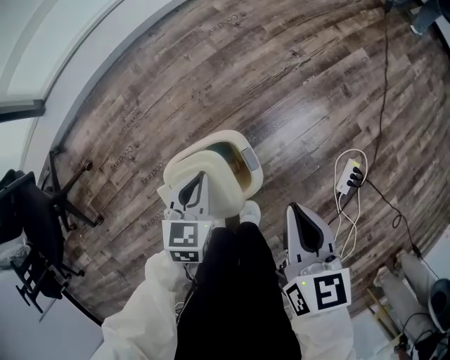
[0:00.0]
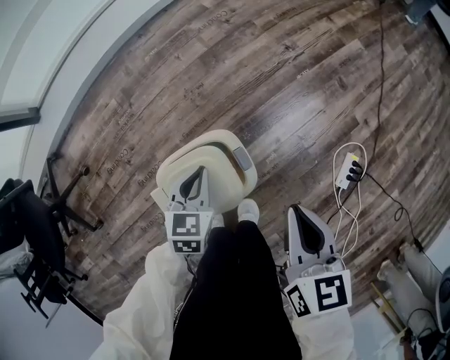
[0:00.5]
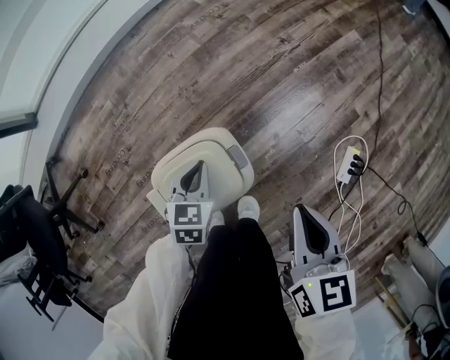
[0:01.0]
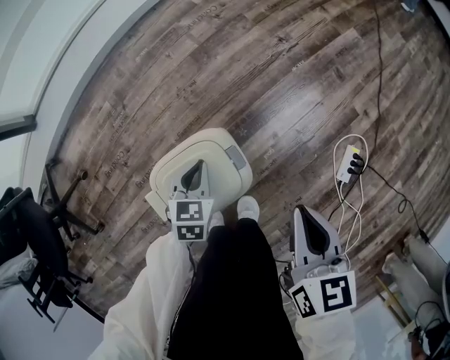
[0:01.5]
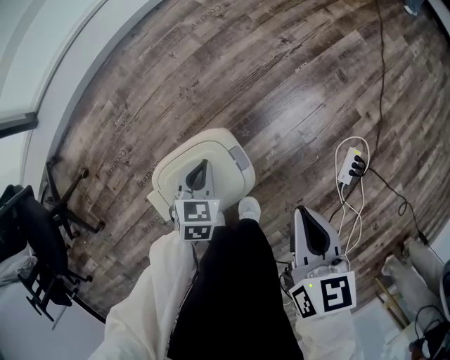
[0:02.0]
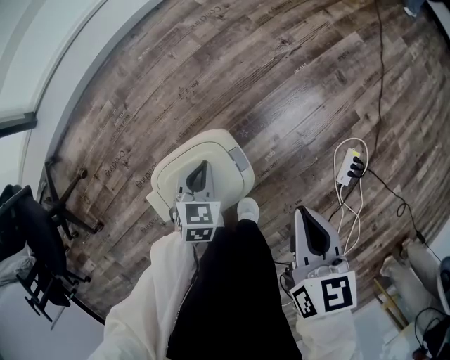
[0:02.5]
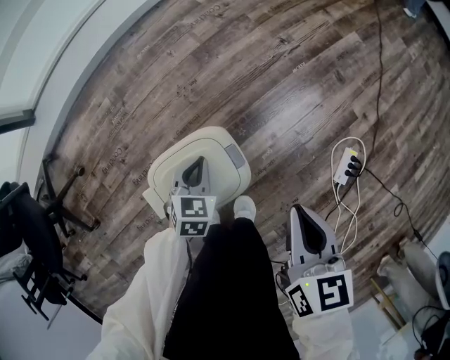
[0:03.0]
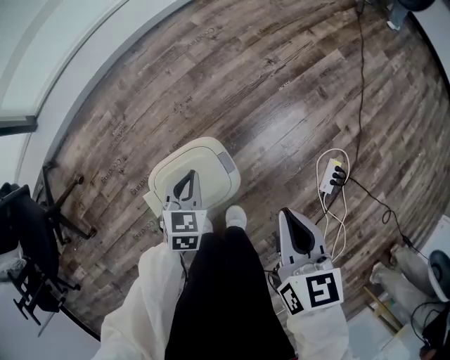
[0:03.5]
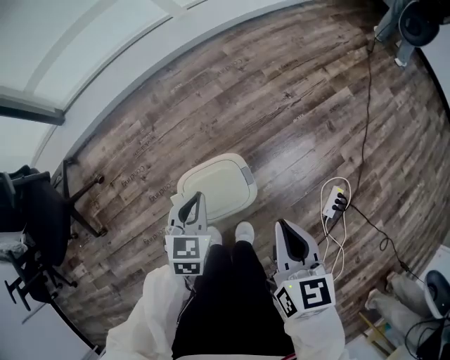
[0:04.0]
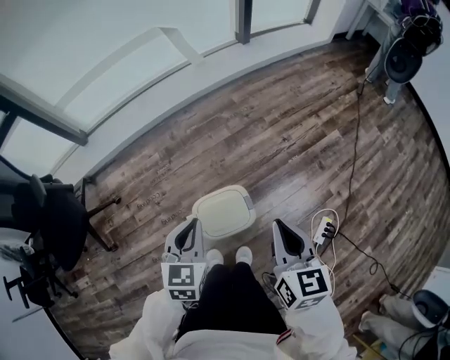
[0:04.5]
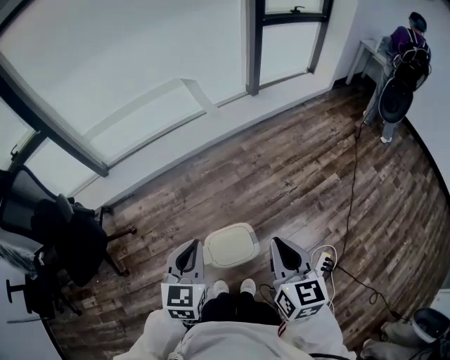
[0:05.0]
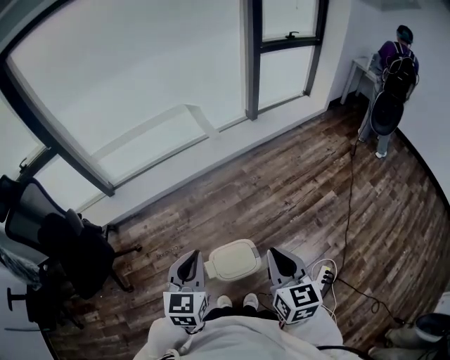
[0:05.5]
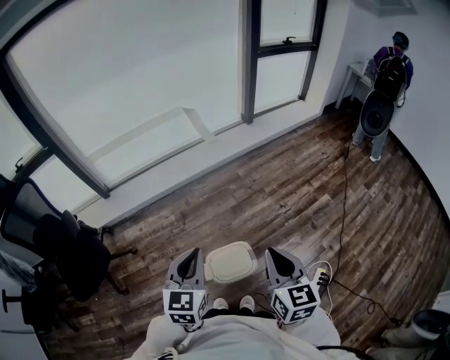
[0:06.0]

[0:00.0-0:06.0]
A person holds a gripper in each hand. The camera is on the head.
0:00.0 to 0:02.0: The right gripper moves about 5 cm. The left gripper heads downward, covering roughly 10 cm.
0:02.0 to 0:04.0: The right gripper heads upward and to the left, covering about 15 cm; the left gripper moves upward, some 20 cm.
0:04.0 to 0:06.0: The two grippers go approximately 40 cm upward. The left gripper rotates roughly 20 degrees.

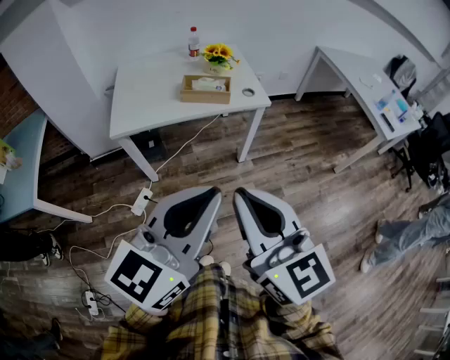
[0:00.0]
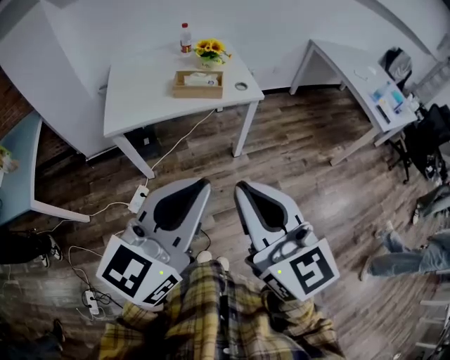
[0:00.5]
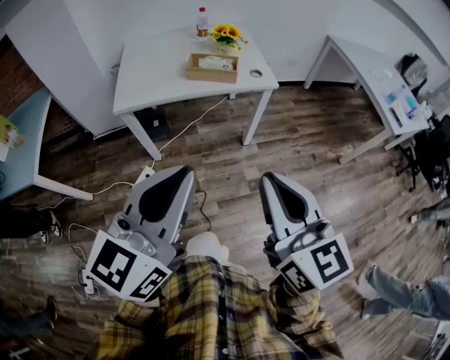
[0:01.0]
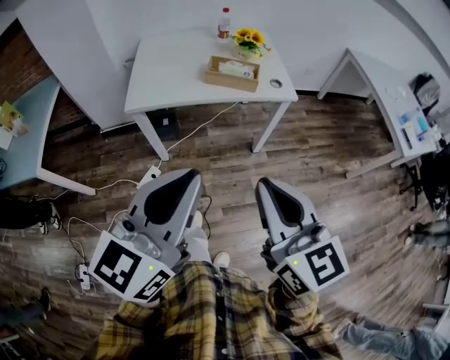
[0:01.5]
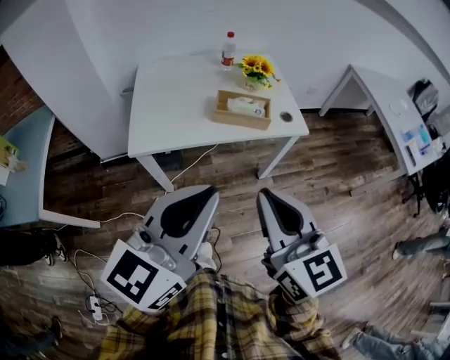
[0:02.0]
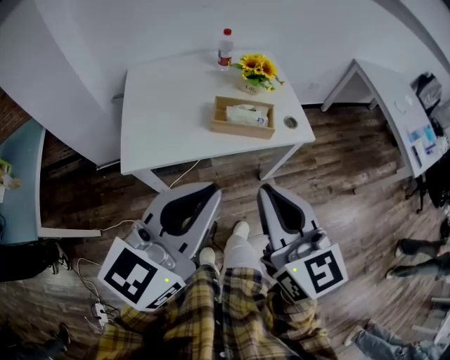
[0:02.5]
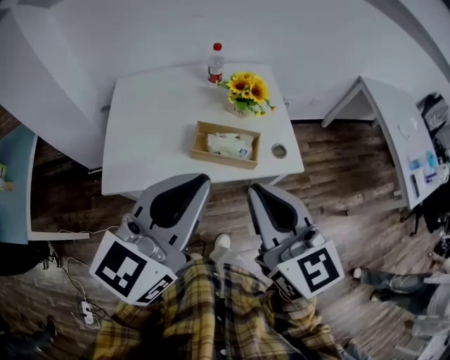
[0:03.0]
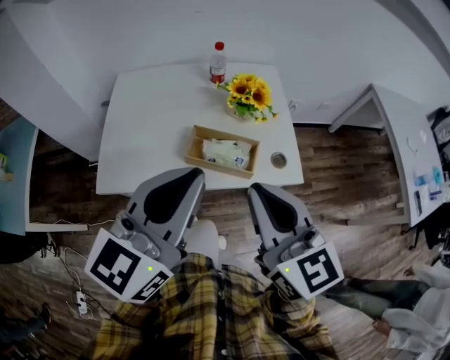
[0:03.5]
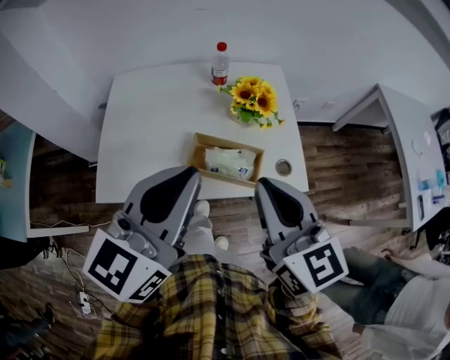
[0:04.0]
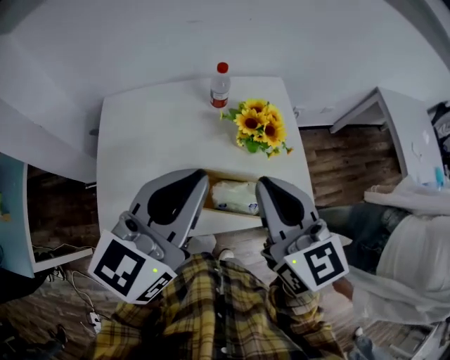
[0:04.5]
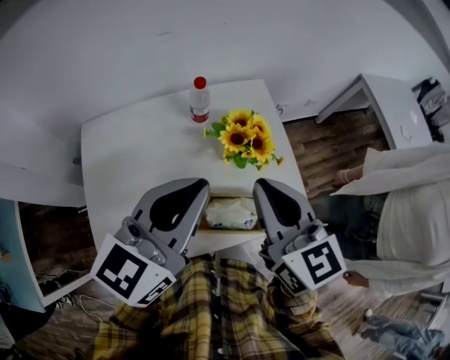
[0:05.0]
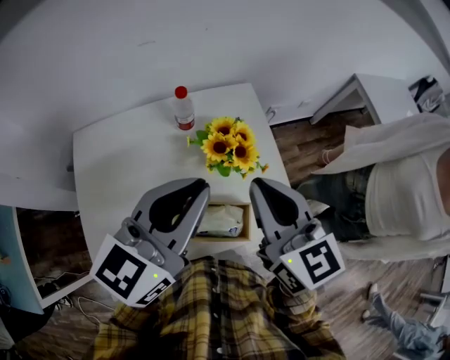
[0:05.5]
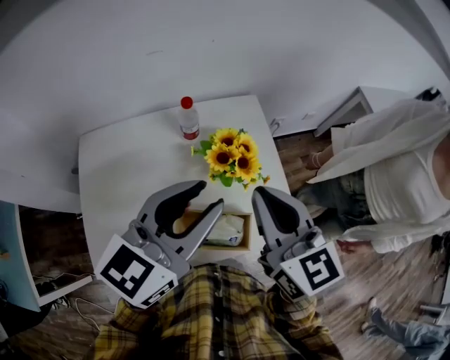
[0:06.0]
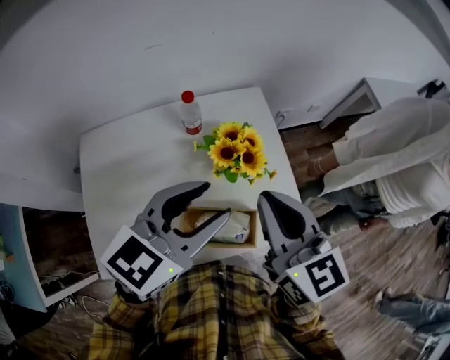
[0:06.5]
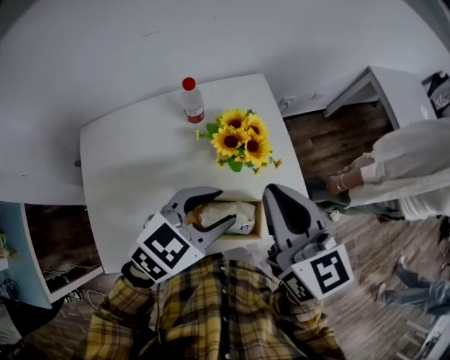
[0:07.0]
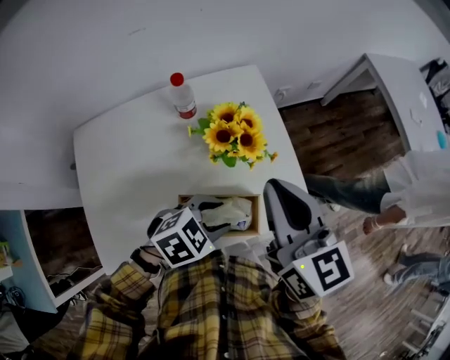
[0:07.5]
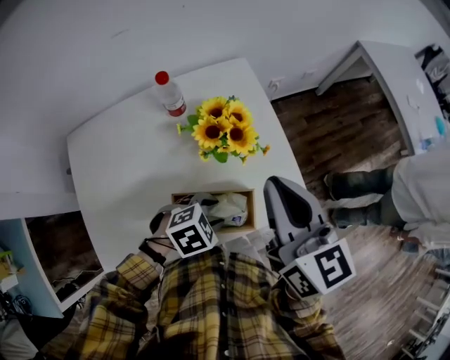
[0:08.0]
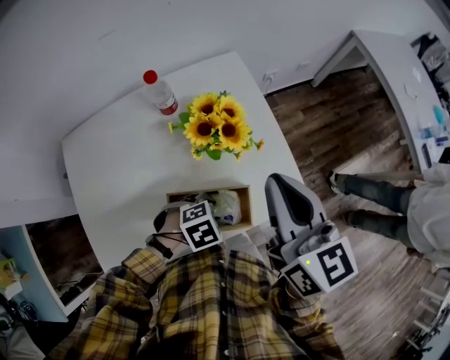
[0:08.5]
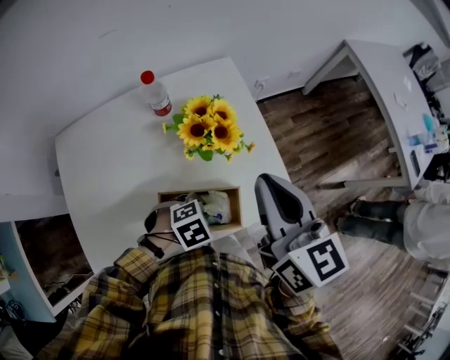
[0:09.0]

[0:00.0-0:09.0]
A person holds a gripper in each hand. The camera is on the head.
0:00.0 to 0:02.0: The two grippers go approximately 20 cm forward and to the left.
0:02.0 to 0:04.5: The two grippers travel together, forward, roughly 40 cm.
0:04.5 to 0:07.0: The left gripper shifts approximately 15 cm downward and to the right, changes its angle by about 40 degrees, and opens. The right gripper shifts approximately 5 cm forward.
0:07.0 to 0:09.0: The right gripper moves roughly 5 cm. The left gripper heads downward, covering approximately 20 cm, angles its fingers downward, by some 40 degrees, and closes its fingers.

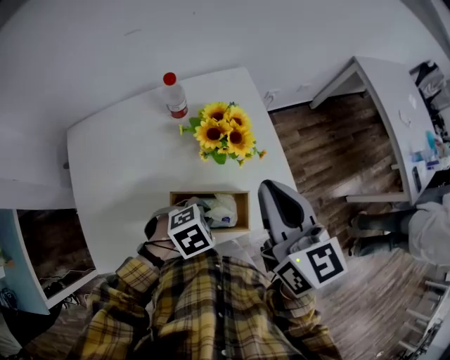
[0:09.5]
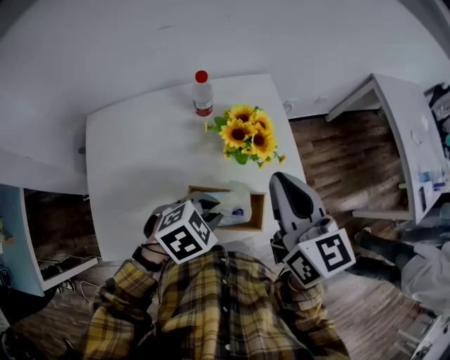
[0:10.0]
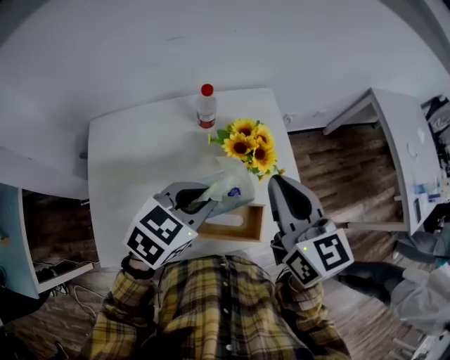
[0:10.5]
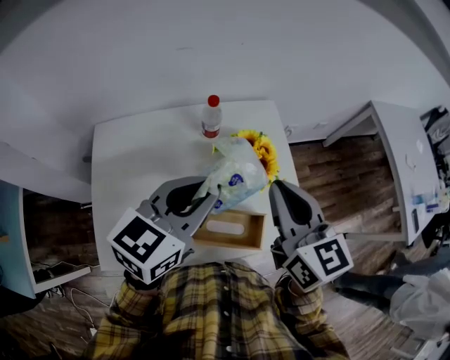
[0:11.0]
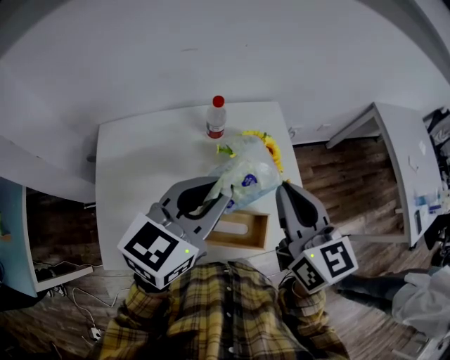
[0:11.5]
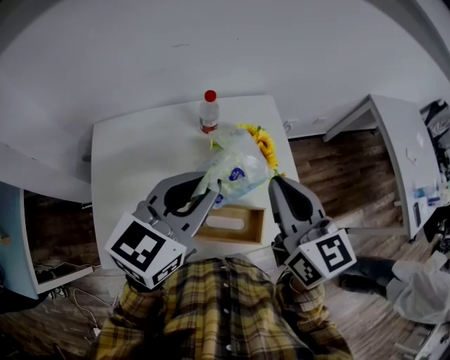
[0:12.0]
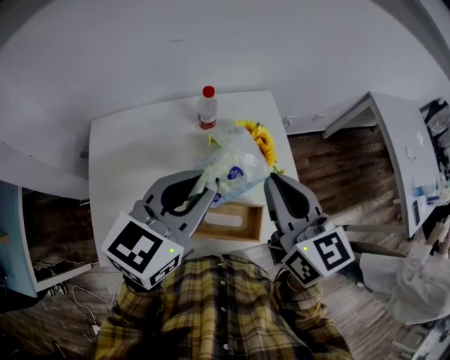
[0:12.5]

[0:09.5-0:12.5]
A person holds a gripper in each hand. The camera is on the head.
0:09.5 to 0:11.0: The left gripper moves upward, about 25 cm, and angles its fingers upward, by some 50 degrees, while the right gripper ends up some 5 cm from where it was.
0:11.0 to 0:12.5: There are only small adjustments of the grippers.

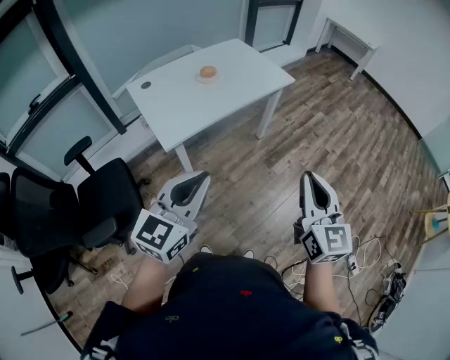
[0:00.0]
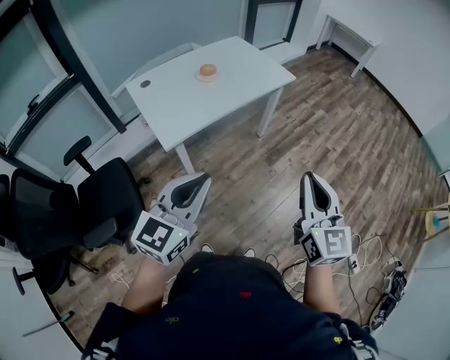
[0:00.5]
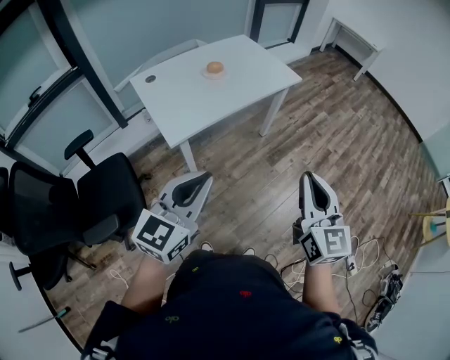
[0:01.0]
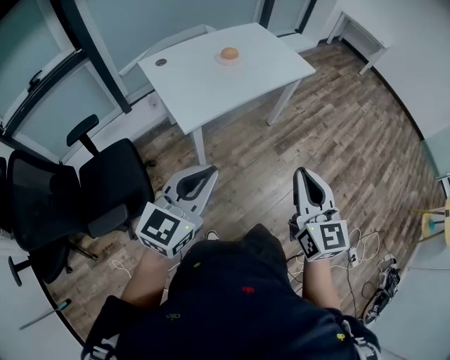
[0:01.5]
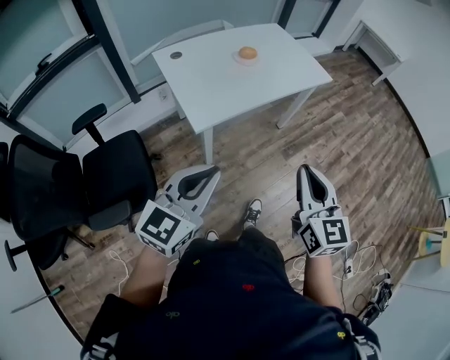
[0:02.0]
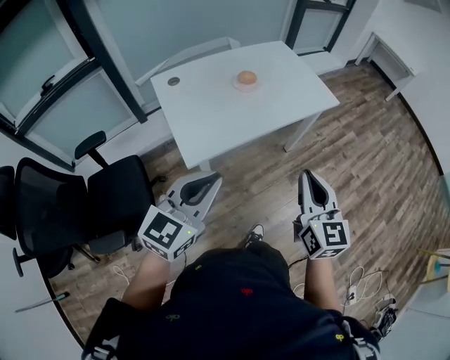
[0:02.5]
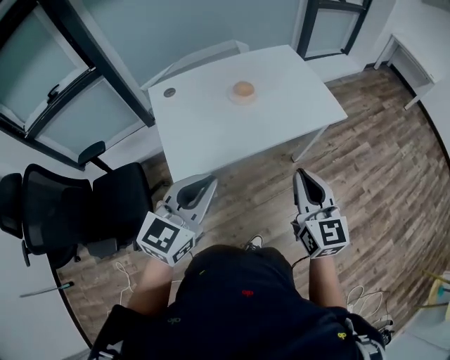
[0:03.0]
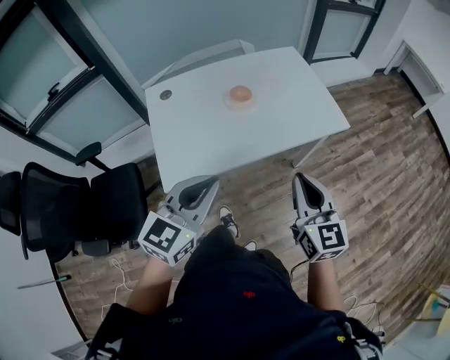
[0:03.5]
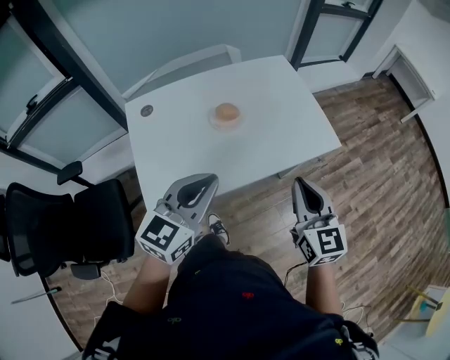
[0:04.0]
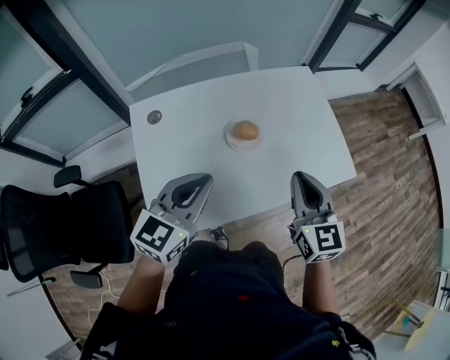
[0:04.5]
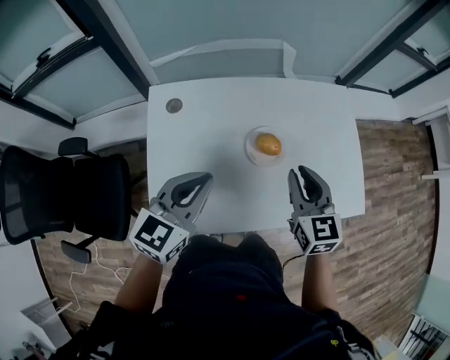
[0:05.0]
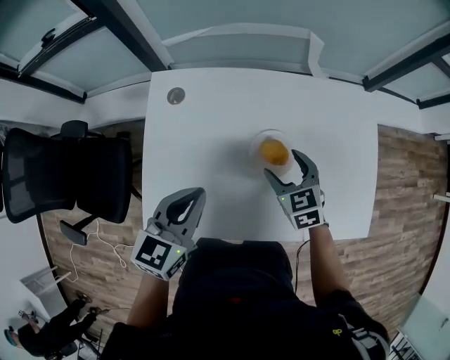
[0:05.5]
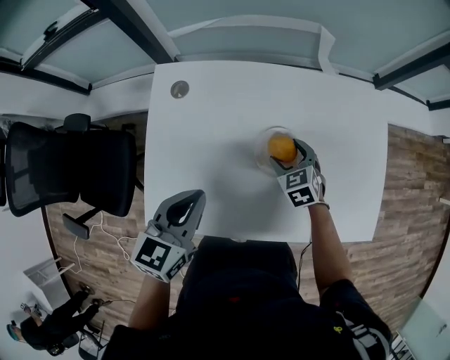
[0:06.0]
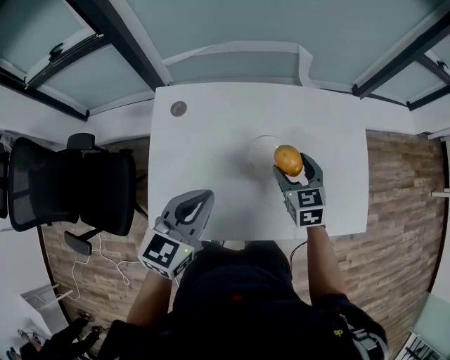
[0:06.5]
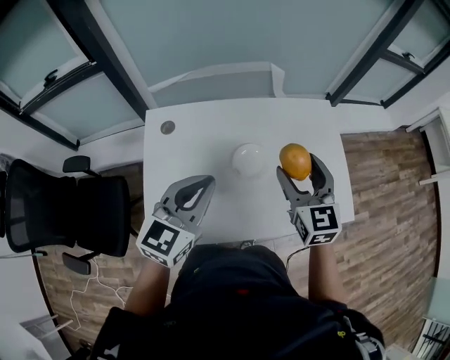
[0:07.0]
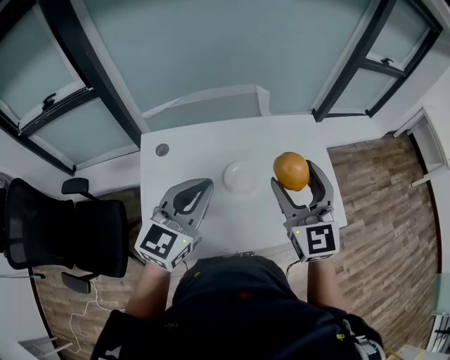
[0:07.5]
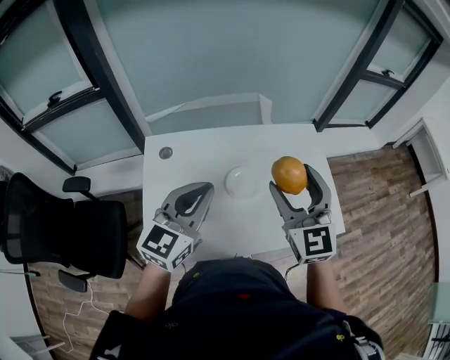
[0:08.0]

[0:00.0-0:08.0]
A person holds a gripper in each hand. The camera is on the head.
0:00.0 to 0:02.0: The grippers both shift to the left by about 15 cm.
0:02.0 to 0:04.0: The two grippers travel together, forward, approximately 50 cm.
0:04.0 to 0:06.0: The left gripper moves some 30 cm, and swivels some 40 degrees; the right gripper moves roughly 50 cm, tips its fingers downward by some 40 degrees, and opens up.
0:06.0 to 0:08.0: The left gripper is displaced upward by about 20 cm, and swivels roughly 30 degrees. Meanwhile the right gripper goes some 40 cm upward, and tilts its fingers about 50 degrees upward.
